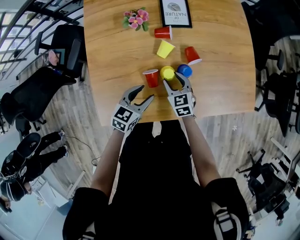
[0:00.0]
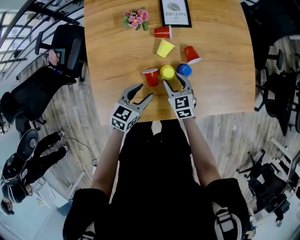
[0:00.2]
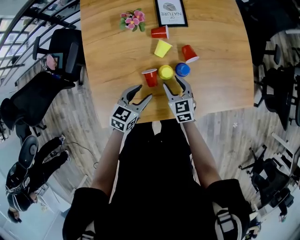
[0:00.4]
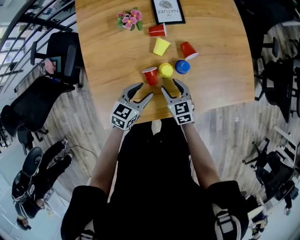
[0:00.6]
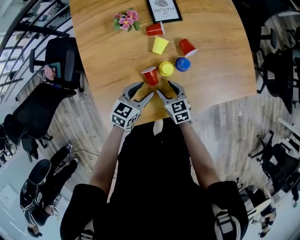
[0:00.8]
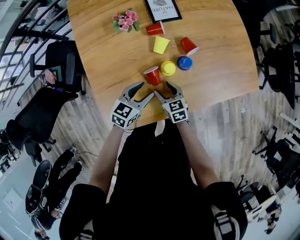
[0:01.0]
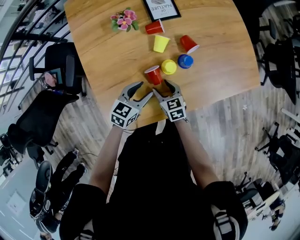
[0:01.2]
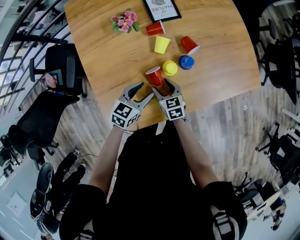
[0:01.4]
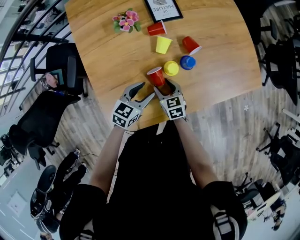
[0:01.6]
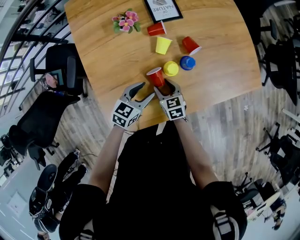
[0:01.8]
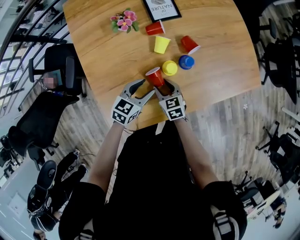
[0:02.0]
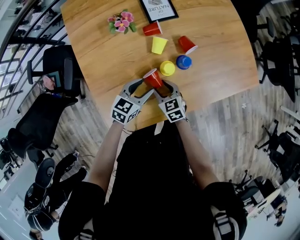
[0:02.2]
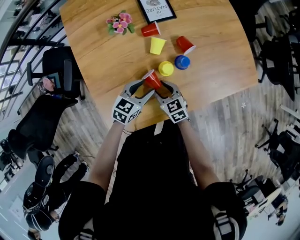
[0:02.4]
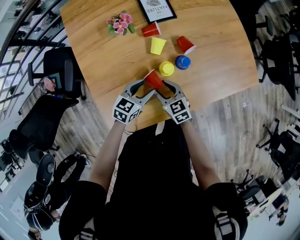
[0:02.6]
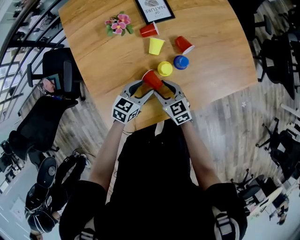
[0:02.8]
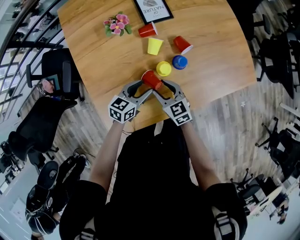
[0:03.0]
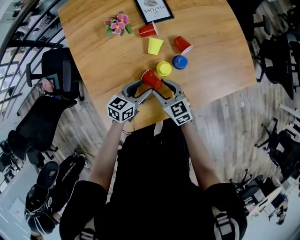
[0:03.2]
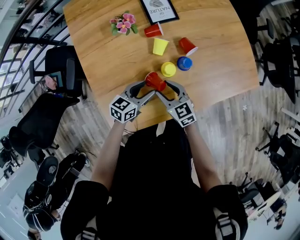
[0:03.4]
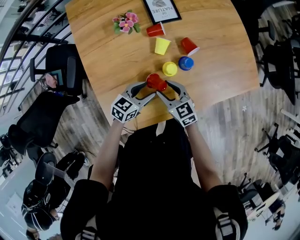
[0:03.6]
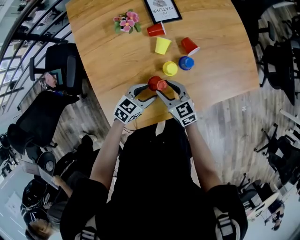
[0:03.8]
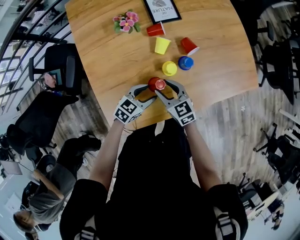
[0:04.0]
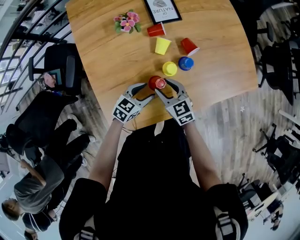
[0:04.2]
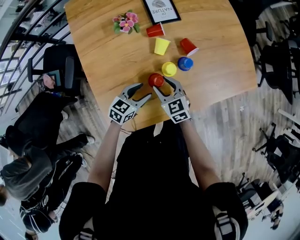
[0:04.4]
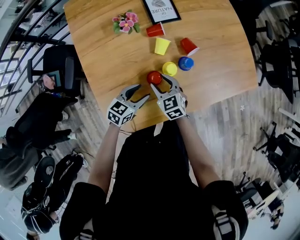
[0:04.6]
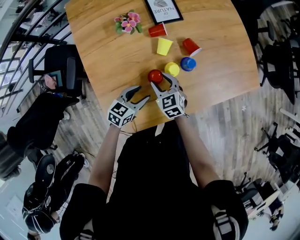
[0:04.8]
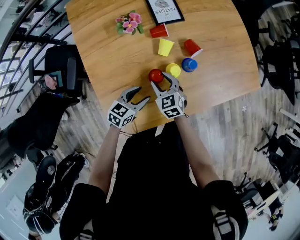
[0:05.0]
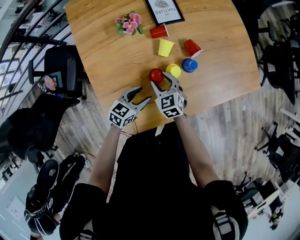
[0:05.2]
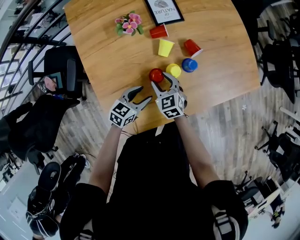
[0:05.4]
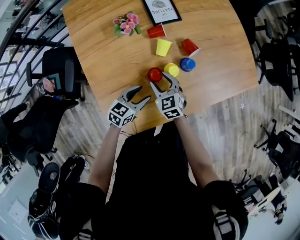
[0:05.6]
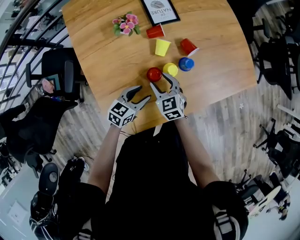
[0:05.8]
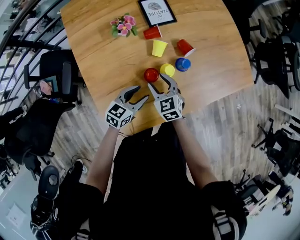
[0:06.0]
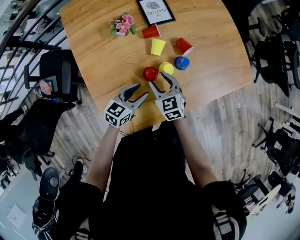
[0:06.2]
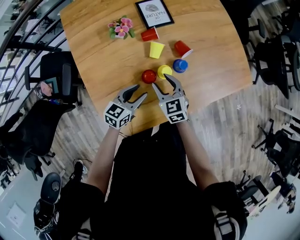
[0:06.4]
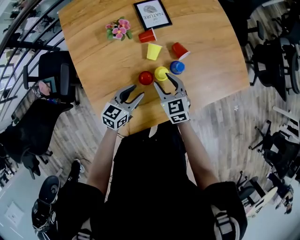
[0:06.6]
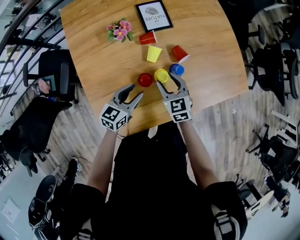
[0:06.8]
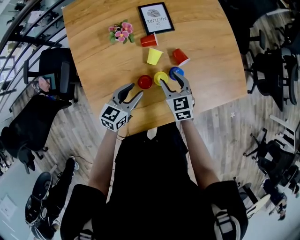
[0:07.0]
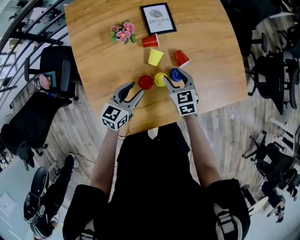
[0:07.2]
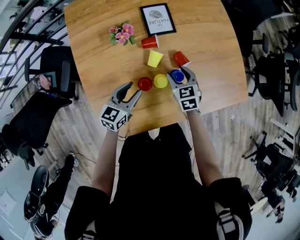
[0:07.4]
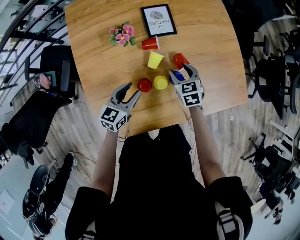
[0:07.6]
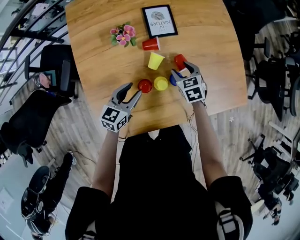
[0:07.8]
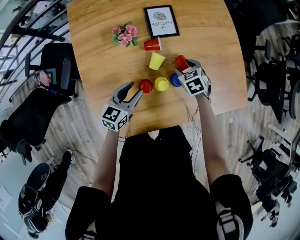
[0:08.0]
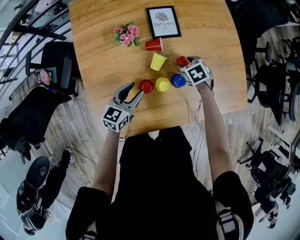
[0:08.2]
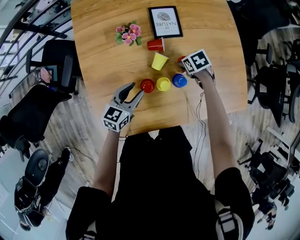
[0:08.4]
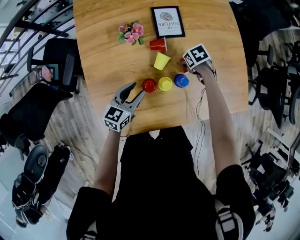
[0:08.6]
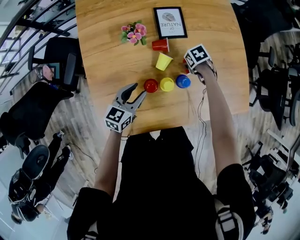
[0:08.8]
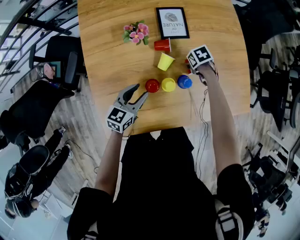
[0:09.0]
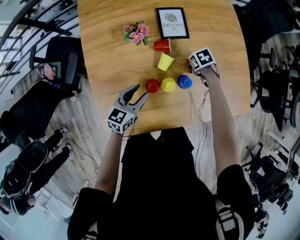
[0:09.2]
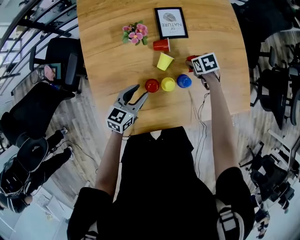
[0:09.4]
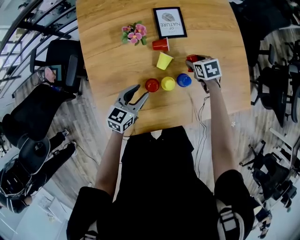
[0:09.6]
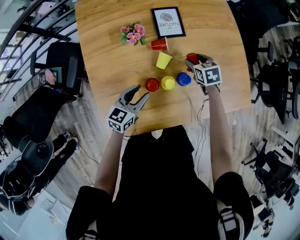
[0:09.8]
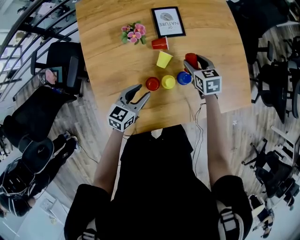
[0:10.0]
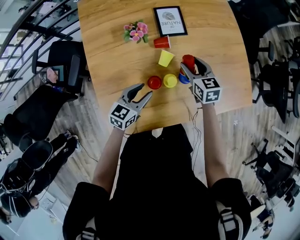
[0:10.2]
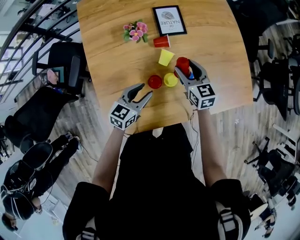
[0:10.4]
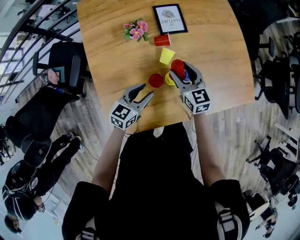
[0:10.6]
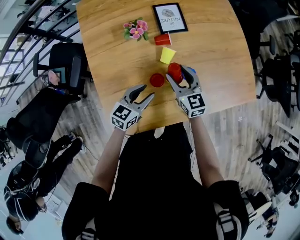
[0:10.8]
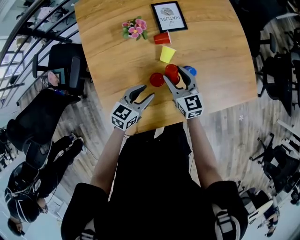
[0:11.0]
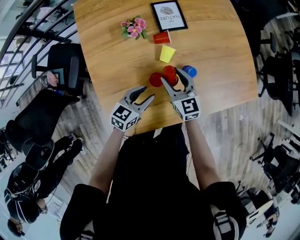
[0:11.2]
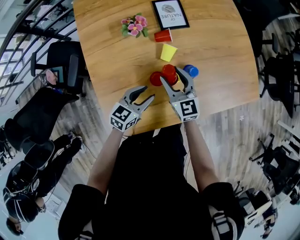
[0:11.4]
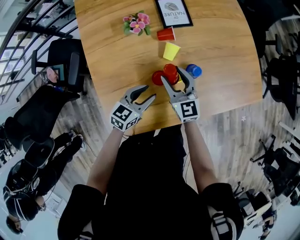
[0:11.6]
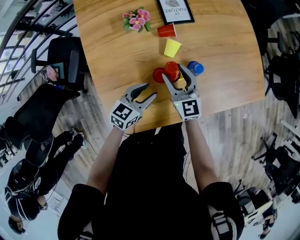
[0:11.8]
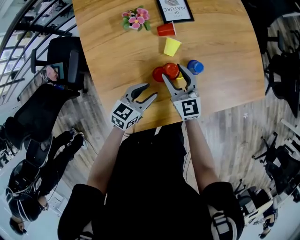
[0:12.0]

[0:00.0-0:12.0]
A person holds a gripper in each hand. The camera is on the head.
0:00.0 to 0:01.6: The right gripper is displaced to the left and backward by roughly 10 cm.
0:01.6 to 0:03.0: The right gripper moves upward, about 5 cm.
0:03.0 to 0:04.4: There are only small adjustments of the grippers.
0:04.4 to 0:06.0: There are only small adjustments of the grippers.
0:06.0 to 0:07.6: The right gripper shifts approximately 15 cm forward and to the right. Meanwhile the left gripper travels forward and upward by some 10 cm.
0:07.6 to 0:09.0: The right gripper goes approximately 10 cm downward, and tips its fingers downward by roughly 30 degrees.
0:09.0 to 0:10.4: The right gripper moves upward, about 15 cm, and tips its fingers upward by about 50 degrees.
0:10.4 to 0:12.0: The left gripper shifts by roughly 5 cm. Meanwhile the right gripper heads backward and to the left, covering about 10 cm.

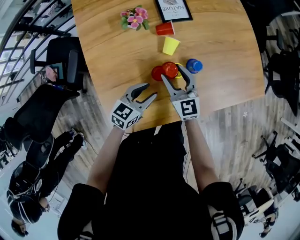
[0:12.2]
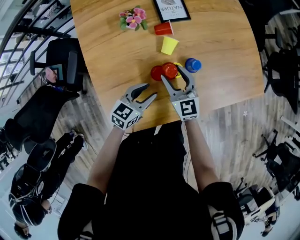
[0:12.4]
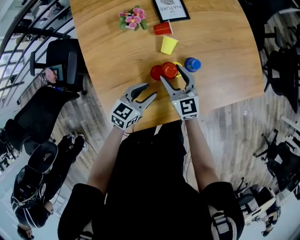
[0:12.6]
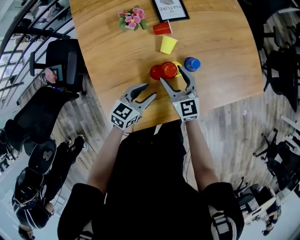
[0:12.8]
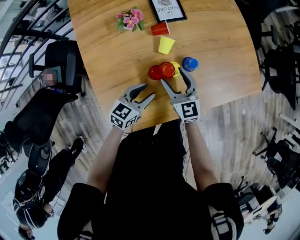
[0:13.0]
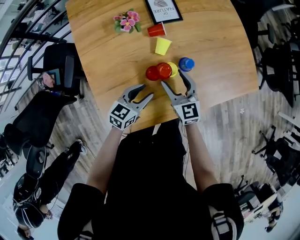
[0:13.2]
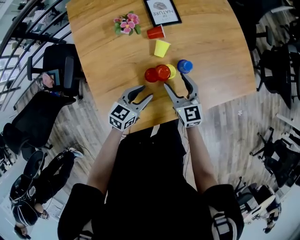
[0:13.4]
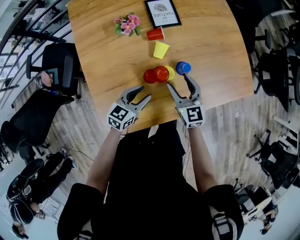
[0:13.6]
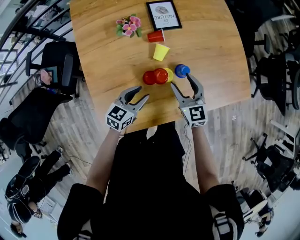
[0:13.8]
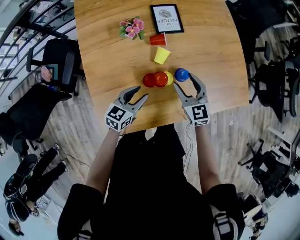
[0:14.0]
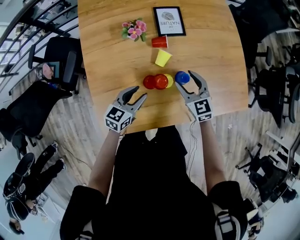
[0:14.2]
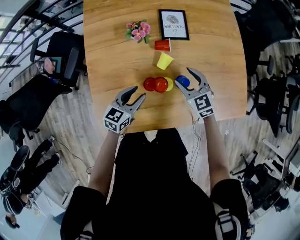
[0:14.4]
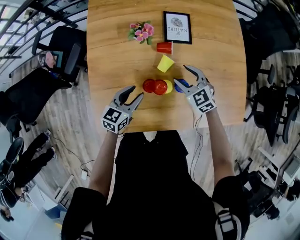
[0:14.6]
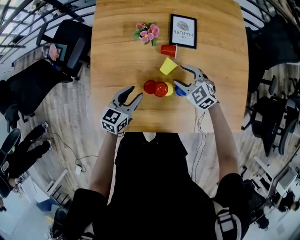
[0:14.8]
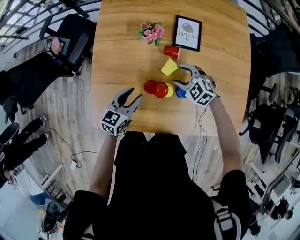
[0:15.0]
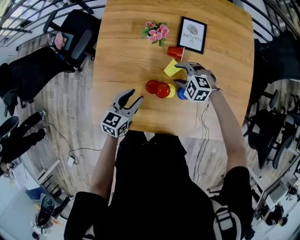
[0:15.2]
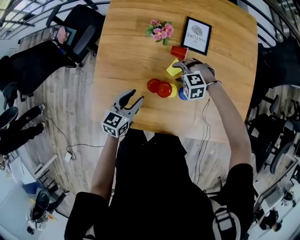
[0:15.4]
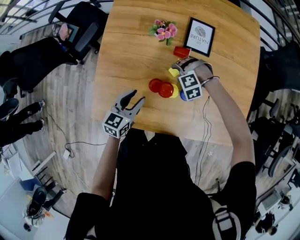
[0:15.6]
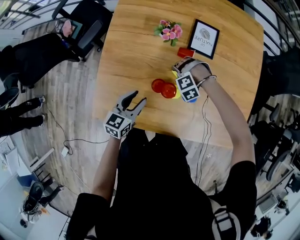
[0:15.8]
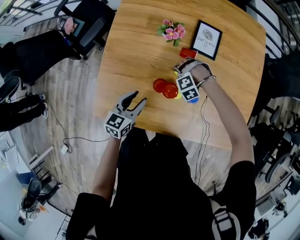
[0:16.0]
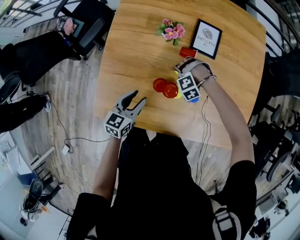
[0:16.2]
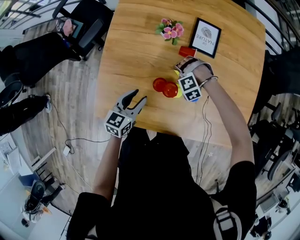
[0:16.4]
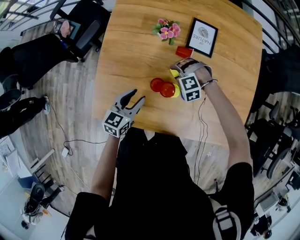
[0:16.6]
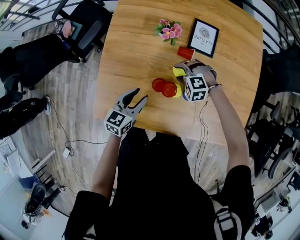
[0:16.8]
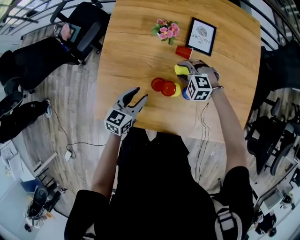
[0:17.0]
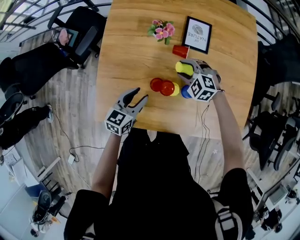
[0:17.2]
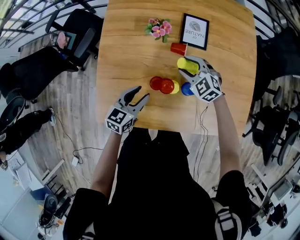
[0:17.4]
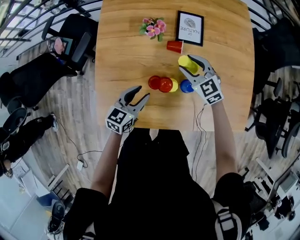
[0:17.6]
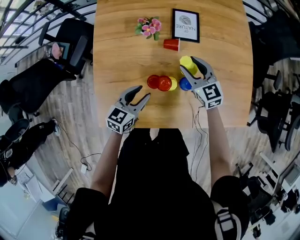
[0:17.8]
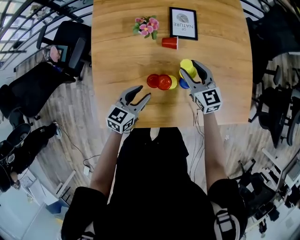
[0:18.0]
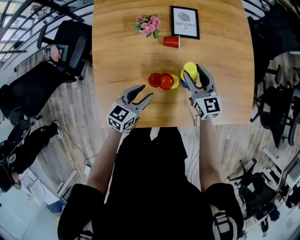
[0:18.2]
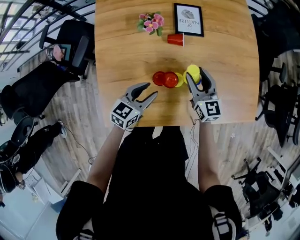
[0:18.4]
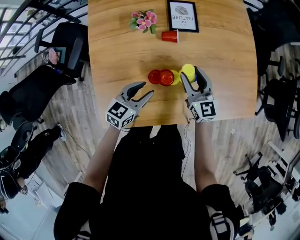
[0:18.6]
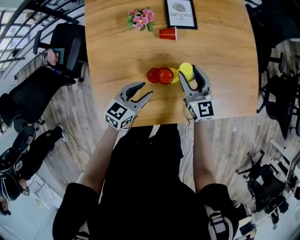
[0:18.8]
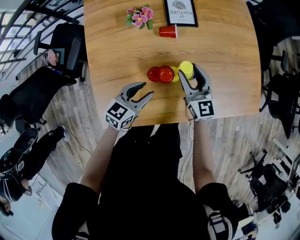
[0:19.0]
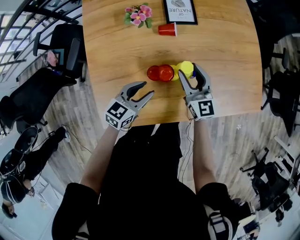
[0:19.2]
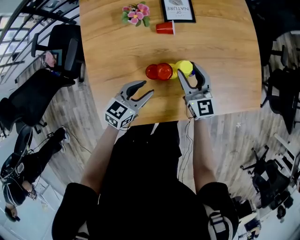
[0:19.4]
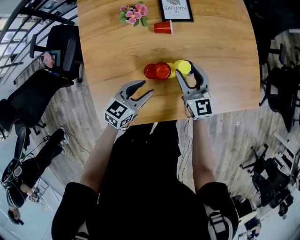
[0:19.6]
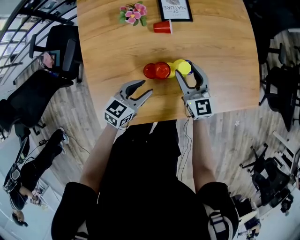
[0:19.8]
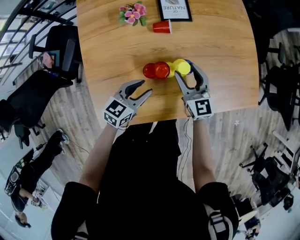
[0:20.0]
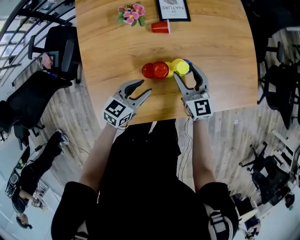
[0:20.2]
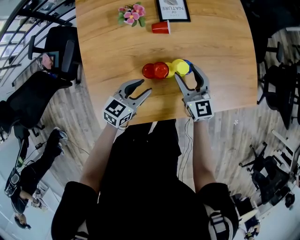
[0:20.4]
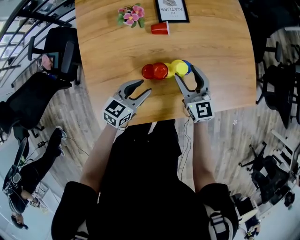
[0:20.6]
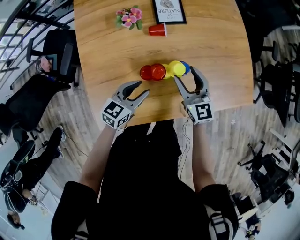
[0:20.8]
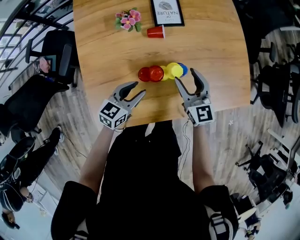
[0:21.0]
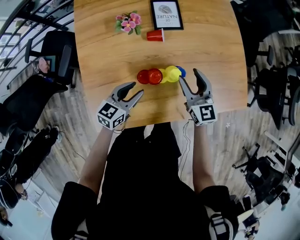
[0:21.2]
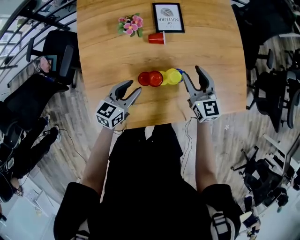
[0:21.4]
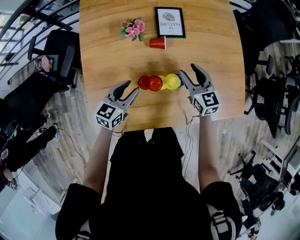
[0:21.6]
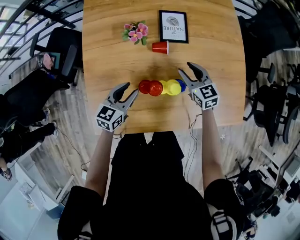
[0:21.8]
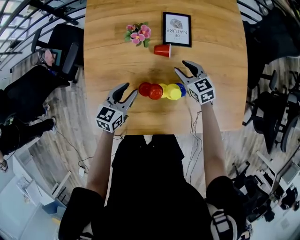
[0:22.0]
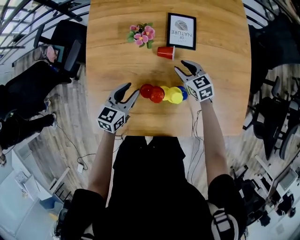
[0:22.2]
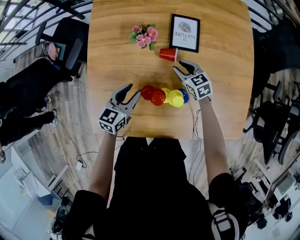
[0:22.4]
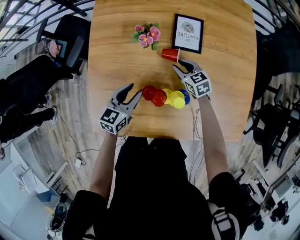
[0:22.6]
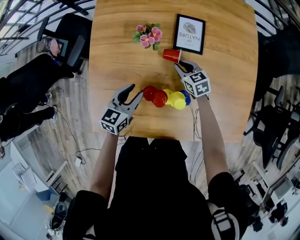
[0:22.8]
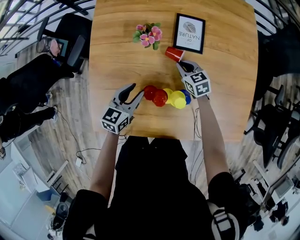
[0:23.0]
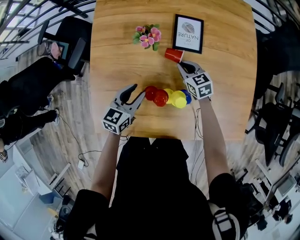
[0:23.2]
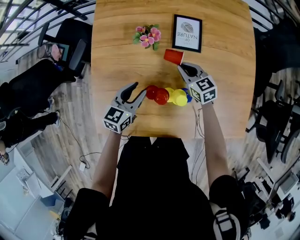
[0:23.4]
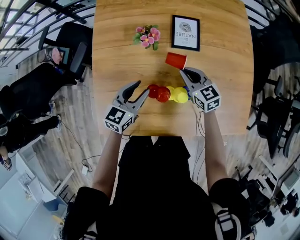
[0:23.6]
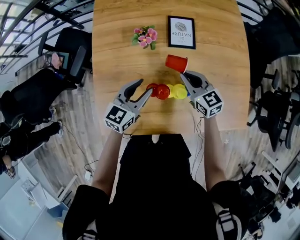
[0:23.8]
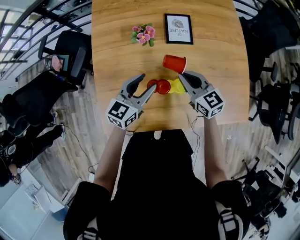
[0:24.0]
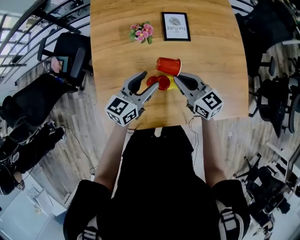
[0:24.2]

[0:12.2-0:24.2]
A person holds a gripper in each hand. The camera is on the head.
0:12.2 to 0:13.8: The right gripper is displaced to the right by about 10 cm.
0:13.8 to 0:15.2: The left gripper changes its angle by about 30 degrees. The right gripper moves about 15 cm, and points its fingers some 40 degrees further downward.
0:15.2 to 0:16.6: The right gripper changes place by roughly 5 cm, and turns by roughly 30 degrees.
0:16.6 to 0:18.2: The right gripper is displaced upward by approximately 15 cm, and rotates around the line of its fingers by about 90 degrees, clockwise from behind; the left gripper changes its angle by some 20 degrees.
0:18.2 to 0:19.8: The right gripper ends up roughly 5 cm from where it was.
0:19.8 to 0:21.2: The right gripper moves approximately 5 cm.
0:21.2 to 0:22.6: The right gripper moves some 20 cm, rotates roughly 40 degrees, and closes up, while the left gripper moves some 10 cm, and turns by roughly 20 degrees.
0:22.6 to 0:24.2: The right gripper travels upward and backward by approximately 25 cm, rotates about 30 degrees, and closes. The left gripper is displaced upward by some 10 cm, and swivels approximately 20 degrees.
